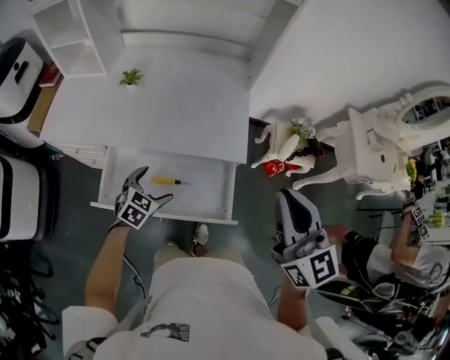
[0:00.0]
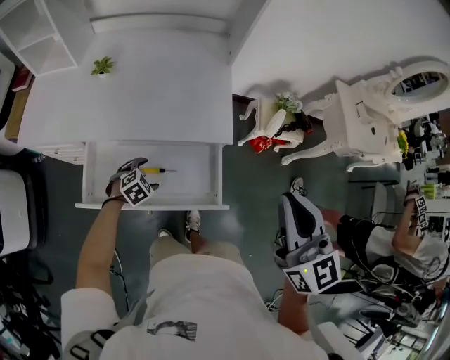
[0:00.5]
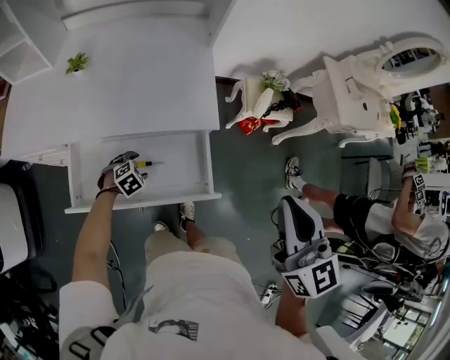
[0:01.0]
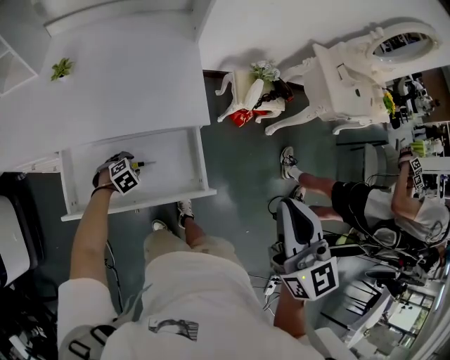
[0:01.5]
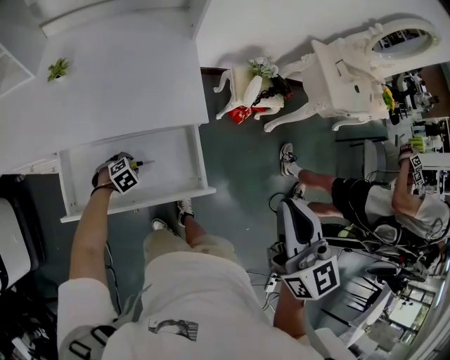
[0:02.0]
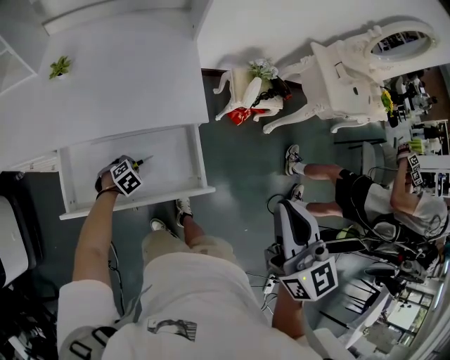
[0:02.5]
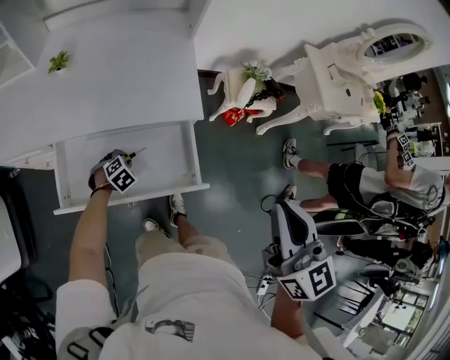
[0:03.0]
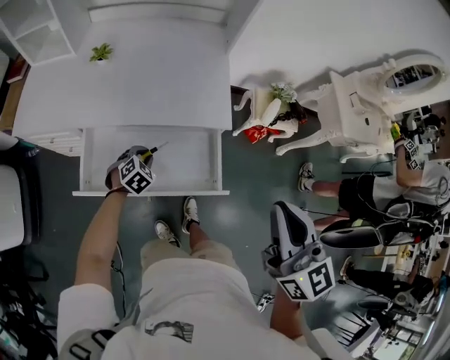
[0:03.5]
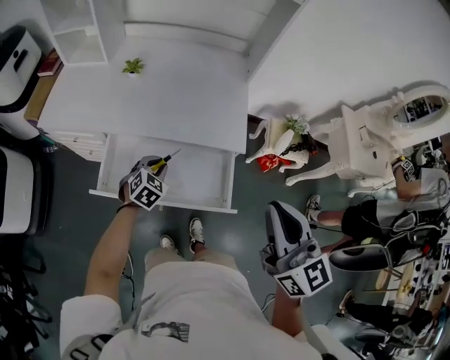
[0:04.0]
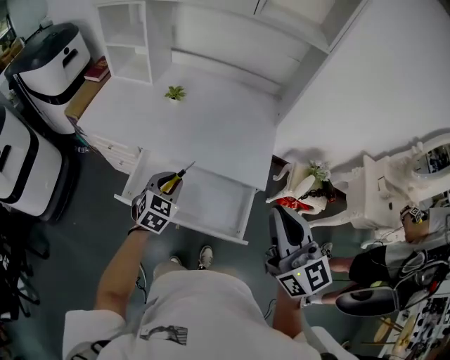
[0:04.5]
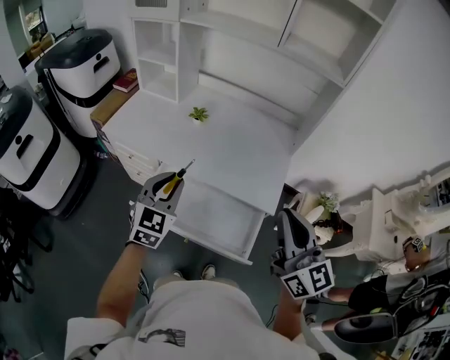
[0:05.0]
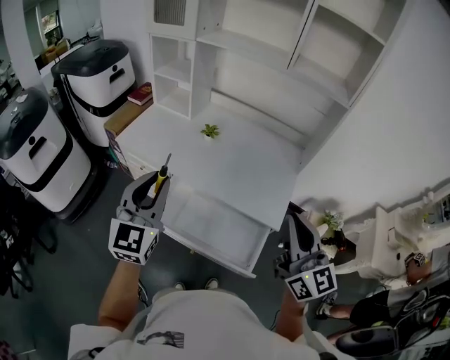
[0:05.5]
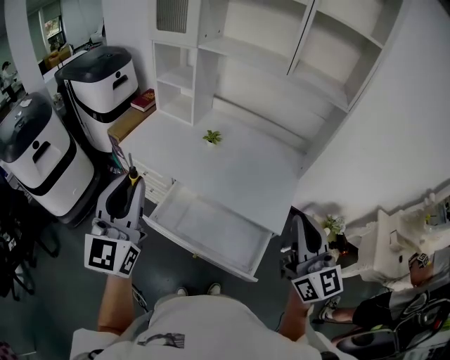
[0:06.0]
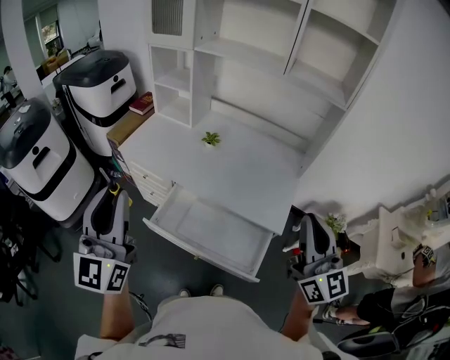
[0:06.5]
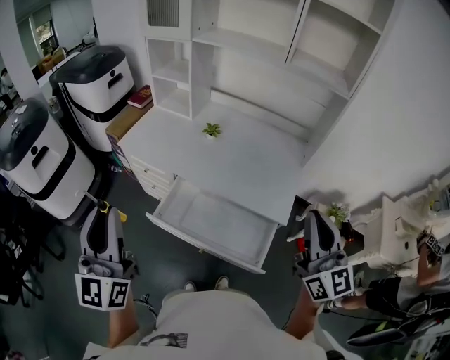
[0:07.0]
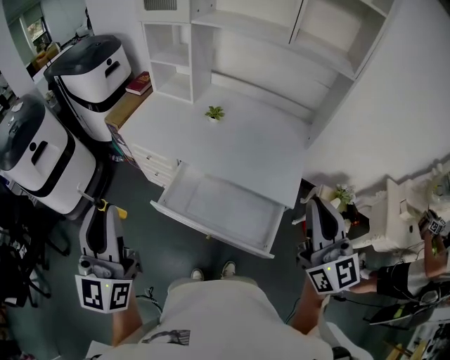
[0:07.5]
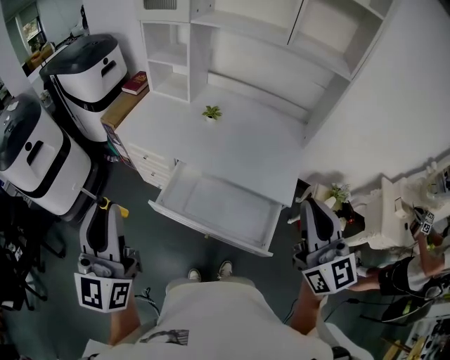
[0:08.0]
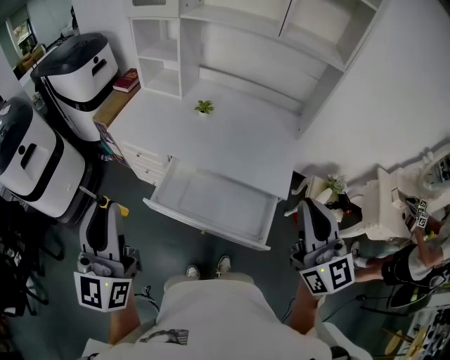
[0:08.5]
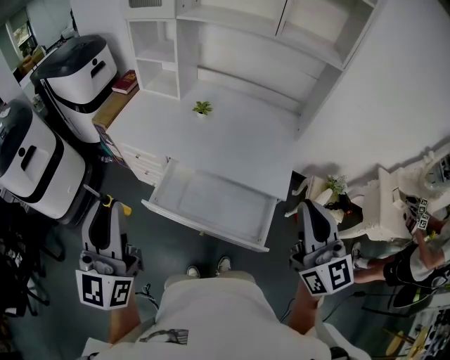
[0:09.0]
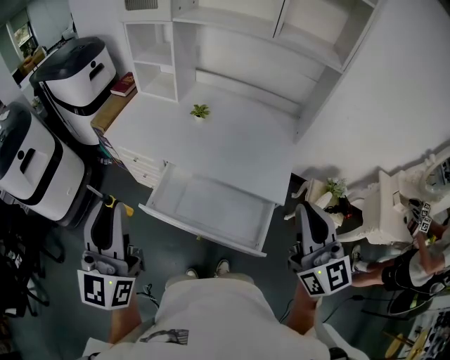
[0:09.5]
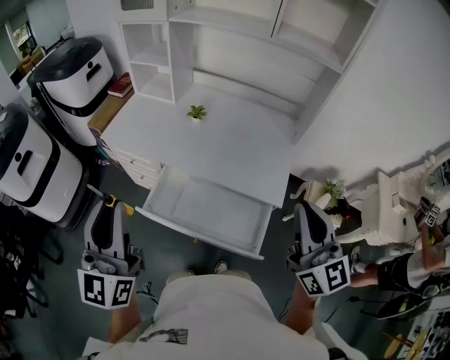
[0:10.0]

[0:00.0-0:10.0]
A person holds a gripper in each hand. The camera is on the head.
0:00.0 to 0:02.0: The left gripper moves downward, roughly 20 cm, changes its angle by about 40 degrees, and closes. Meanwhile the right gripper changes place by about 10 cm, and swivels about 20 degrees.
0:02.0 to 0:04.0: The right gripper moves some 10 cm, and rotates about 20 degrees, while the left gripper is displaced upward by roughly 20 cm, and changes its angle by some 40 degrees.
0:04.0 to 0:06.0: The right gripper goes roughly 10 cm upward and forward, and changes its angle by some 20 degrees. Meanwhile the left gripper moves upward and to the left, roughly 50 cm, and angles its fingers upward, by approximately 60 degrees.
0:06.0 to 0:08.0: The left gripper is displaced to the left and backward by some 10 cm.
0:08.0 to 0:10.0: The left gripper heads to the right, covering about 5 cm.

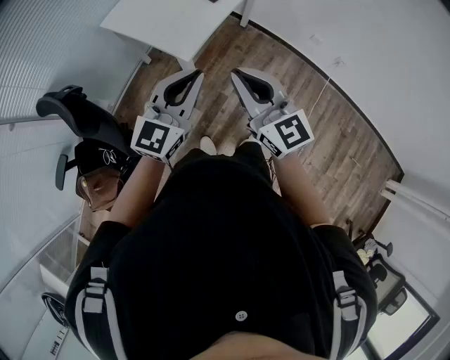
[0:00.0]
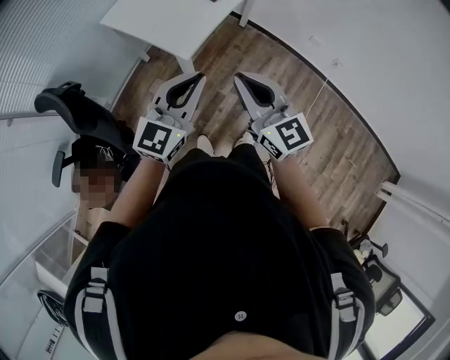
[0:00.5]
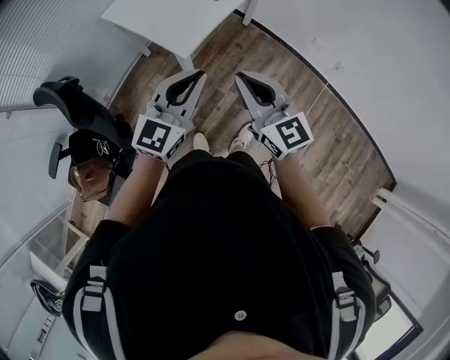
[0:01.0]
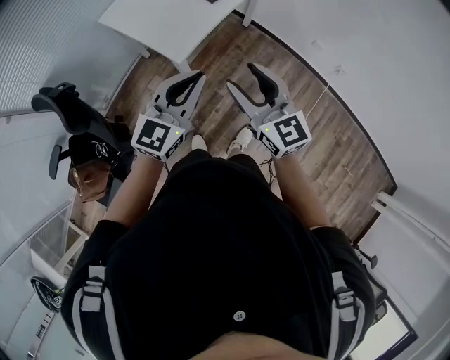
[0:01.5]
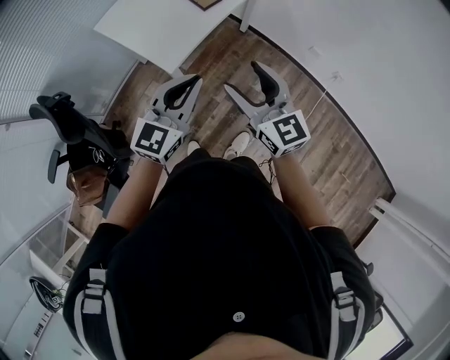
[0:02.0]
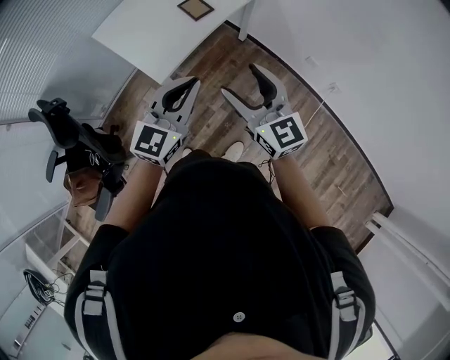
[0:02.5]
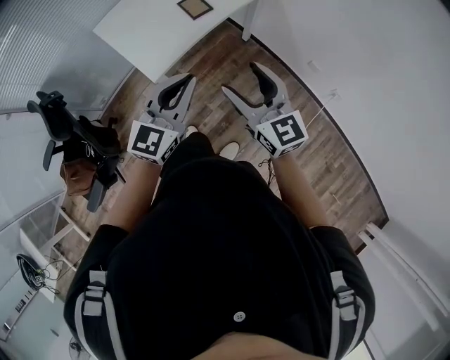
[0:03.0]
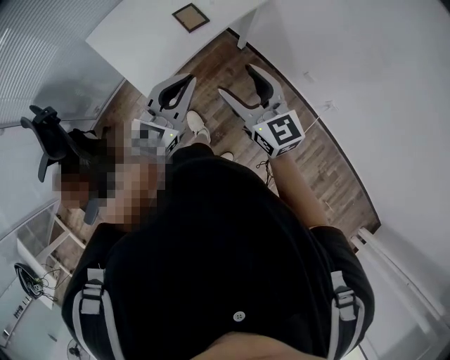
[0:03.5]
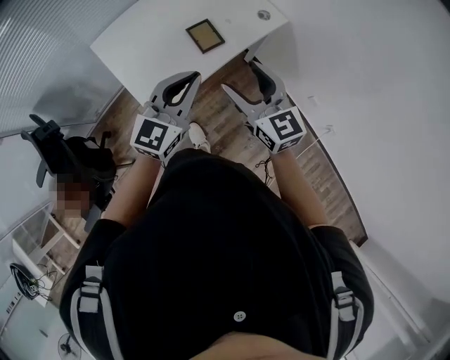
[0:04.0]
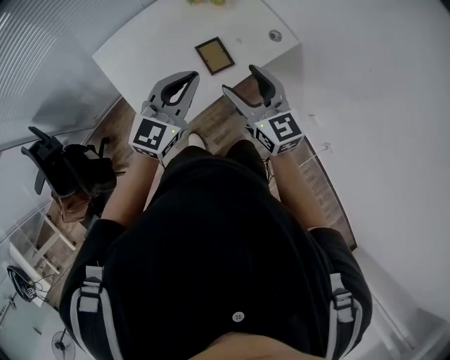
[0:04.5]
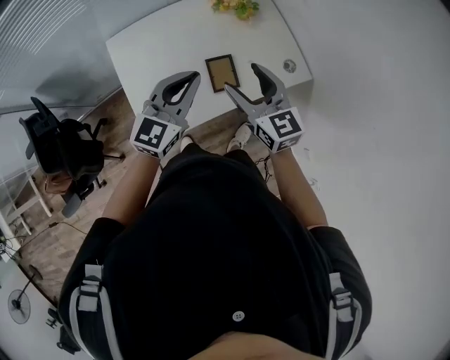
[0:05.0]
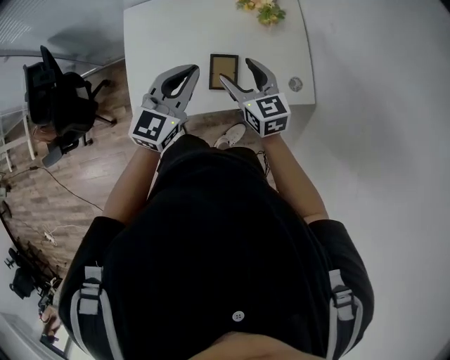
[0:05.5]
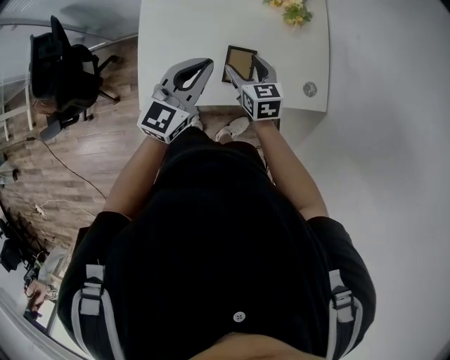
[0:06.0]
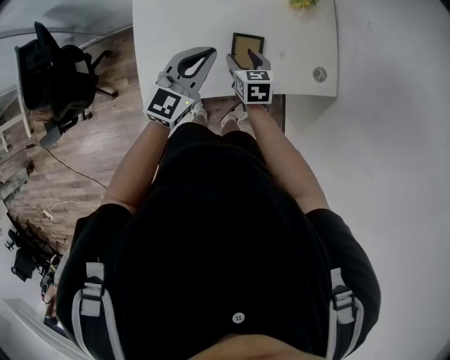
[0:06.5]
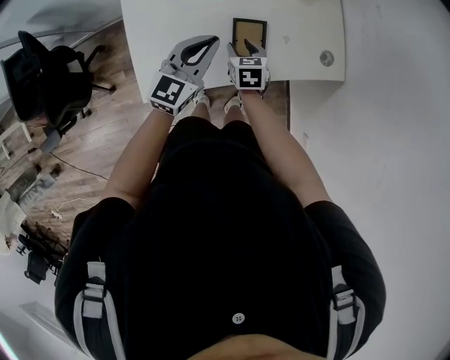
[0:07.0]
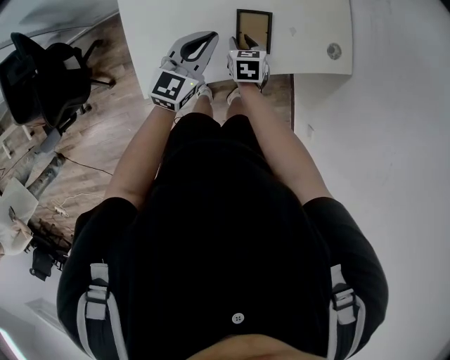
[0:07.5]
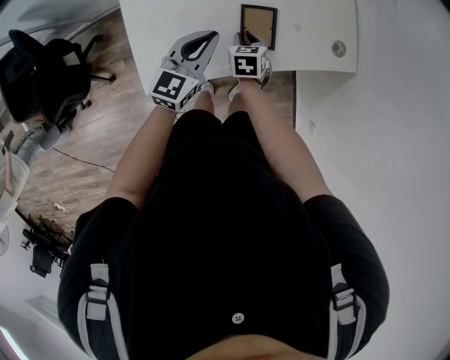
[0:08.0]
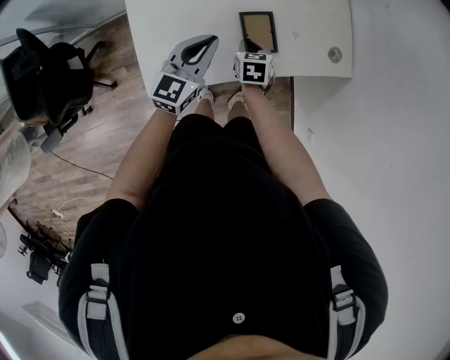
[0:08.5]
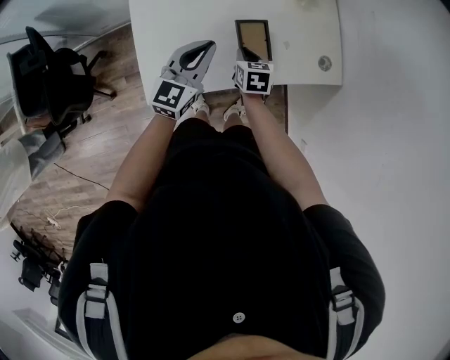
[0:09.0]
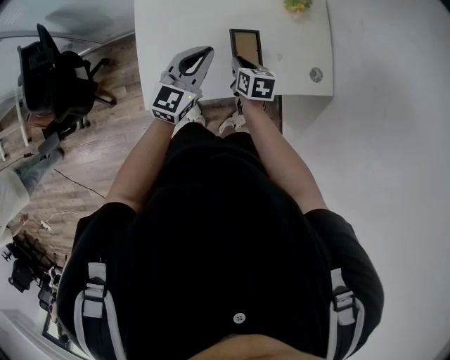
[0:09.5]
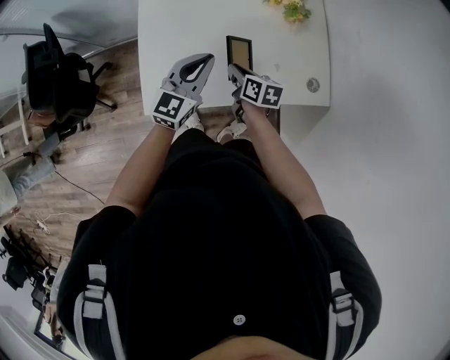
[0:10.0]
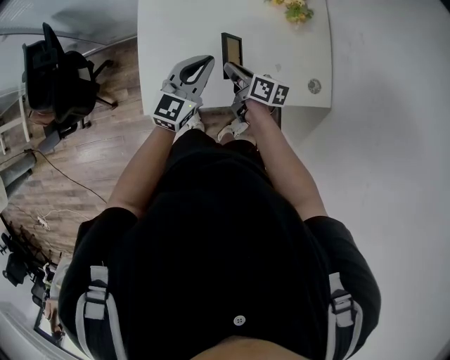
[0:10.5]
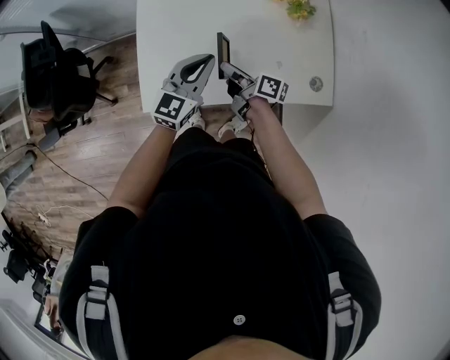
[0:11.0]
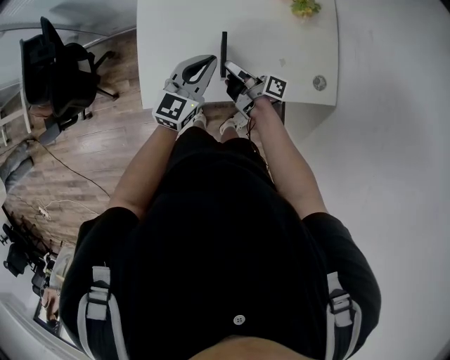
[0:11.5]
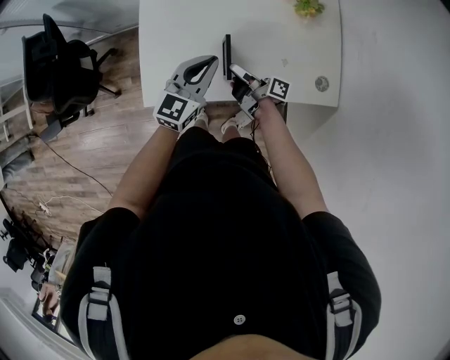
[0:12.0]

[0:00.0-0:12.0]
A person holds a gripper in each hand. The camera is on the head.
0:00.0 to 0:02.0: The grippers both shift to the right and forward by about 15 cm. The right gripper opens up.
0:02.0 to 0:04.0: Both grippers travel together forward, roughly 30 cm.
0:04.0 to 0:06.0: The right gripper shifts by some 35 cm, and changes its angle by some 40 degrees. Meanwhile the left gripper shifts by about 25 cm, and turns by about 40 degrees.
0:06.0 to 0:08.0: The two grippers go approximately 20 cm downward. The right gripper rotates approximately 30 degrees, and closes.
0:08.0 to 0:10.0: Both grippers move upward, about 10 cm. The right gripper turns by about 40 degrees.
0:10.0 to 0:12.0: The right gripper points its fingers some 30 degrees further upward.

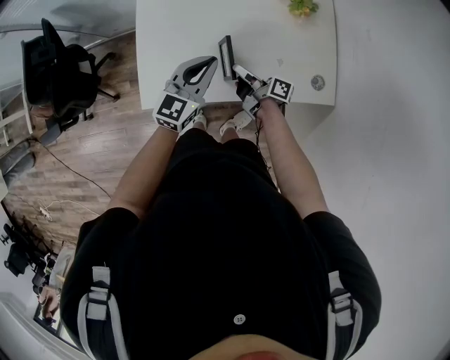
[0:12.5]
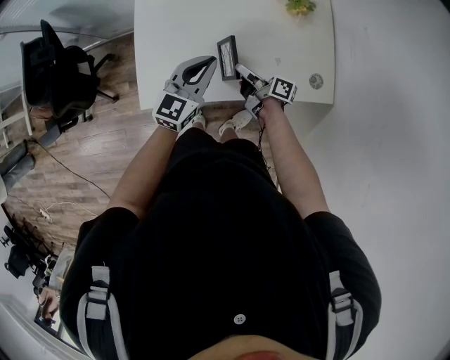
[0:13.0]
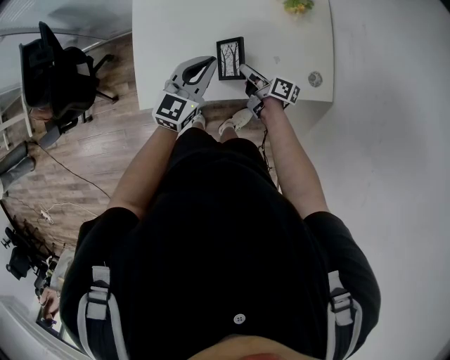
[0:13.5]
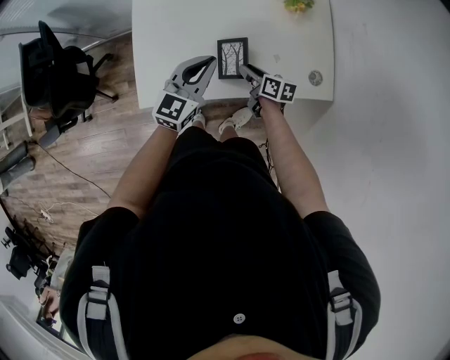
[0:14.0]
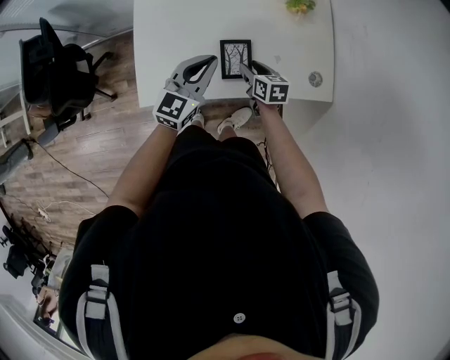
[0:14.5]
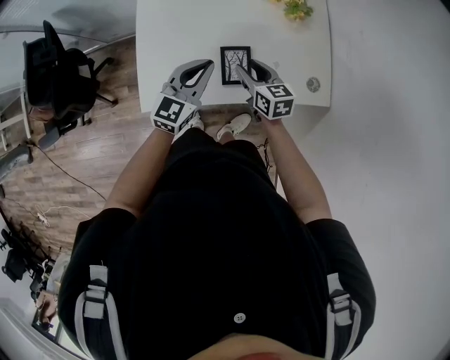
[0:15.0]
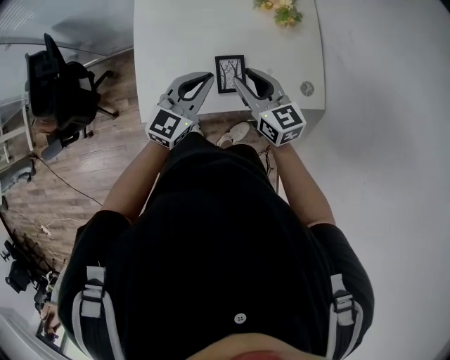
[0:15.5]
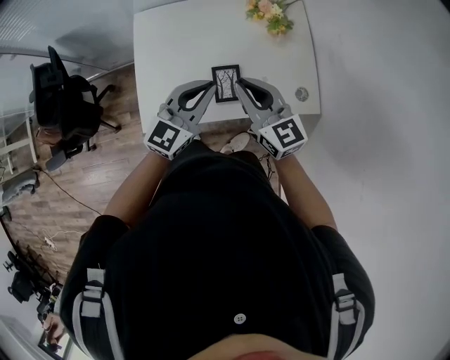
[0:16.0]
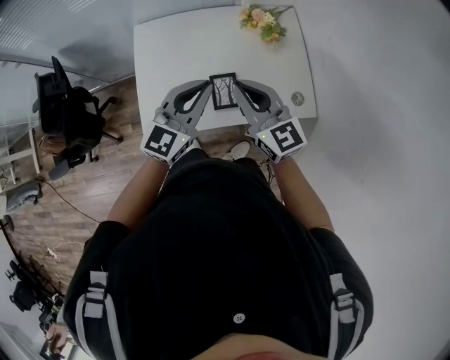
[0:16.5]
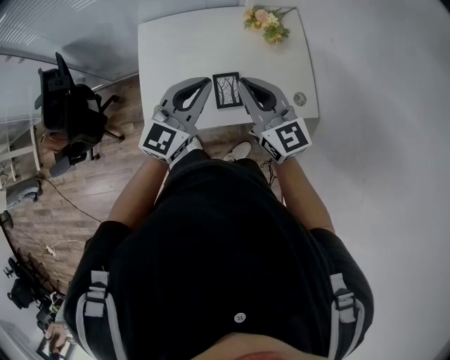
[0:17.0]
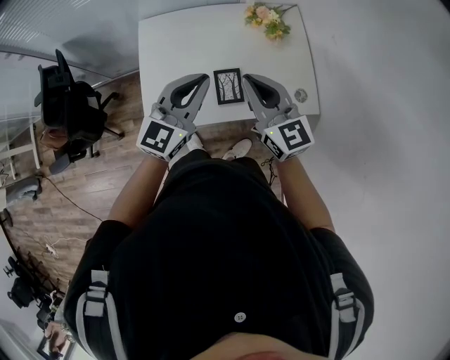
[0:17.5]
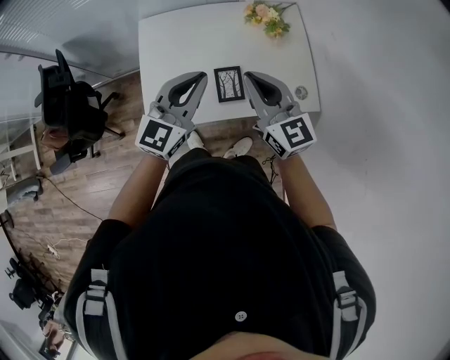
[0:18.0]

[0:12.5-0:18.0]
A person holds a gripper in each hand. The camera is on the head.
0:12.5 to 0:14.5: The right gripper shifts by roughly 5 cm, and tilts its fingers some 40 degrees downward.
0:14.5 to 0:16.0: The left gripper heads upward, covering roughly 10 cm. The right gripper heads upward, covering some 30 cm, points its fingers approximately 30 degrees further upward, and closes its fingers.
0:16.0 to 0:18.0: Both grippers move upward, about 5 cm.
